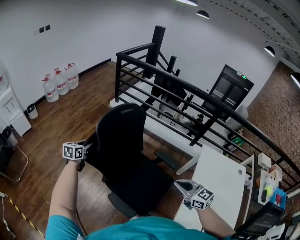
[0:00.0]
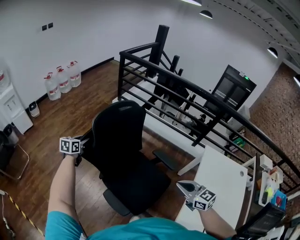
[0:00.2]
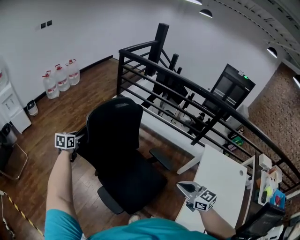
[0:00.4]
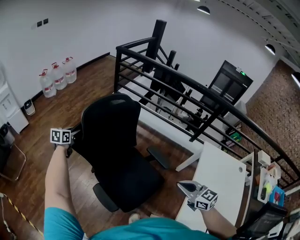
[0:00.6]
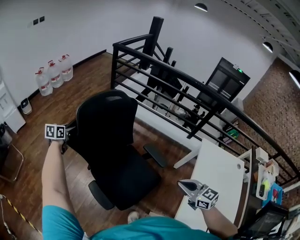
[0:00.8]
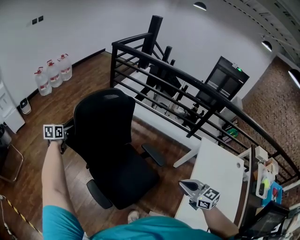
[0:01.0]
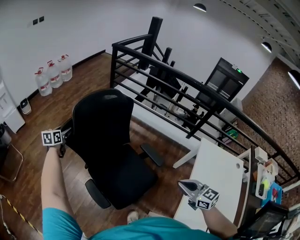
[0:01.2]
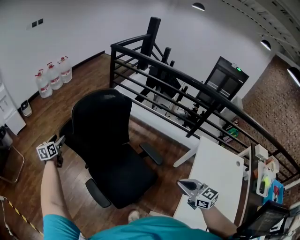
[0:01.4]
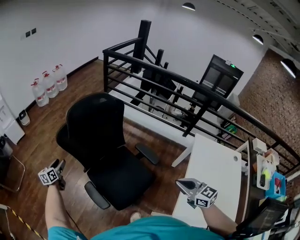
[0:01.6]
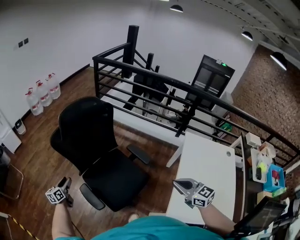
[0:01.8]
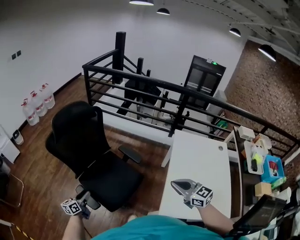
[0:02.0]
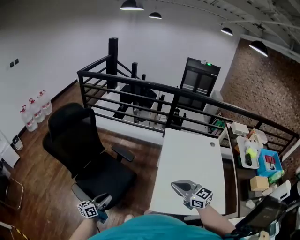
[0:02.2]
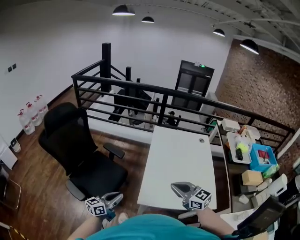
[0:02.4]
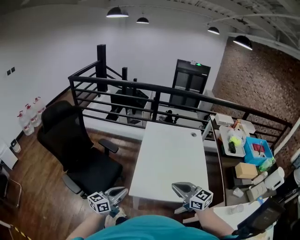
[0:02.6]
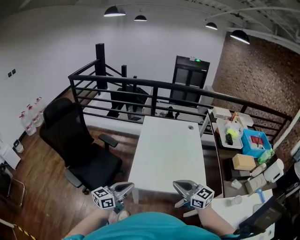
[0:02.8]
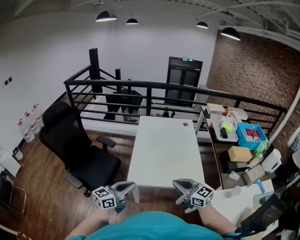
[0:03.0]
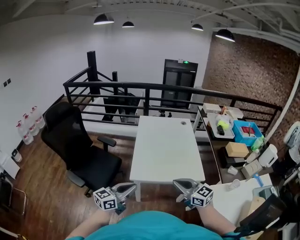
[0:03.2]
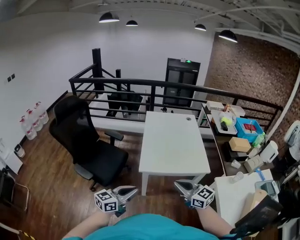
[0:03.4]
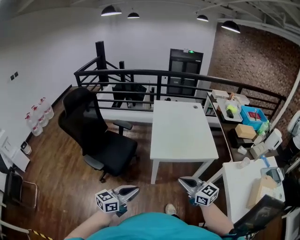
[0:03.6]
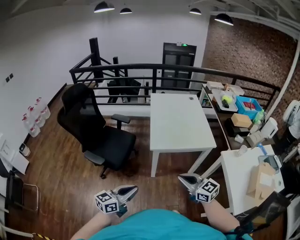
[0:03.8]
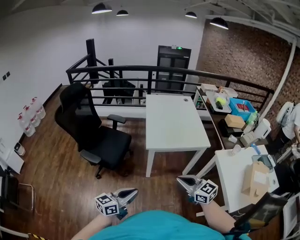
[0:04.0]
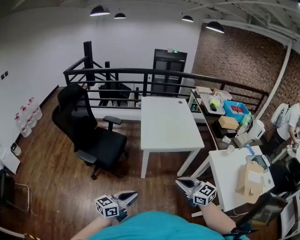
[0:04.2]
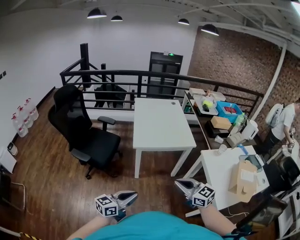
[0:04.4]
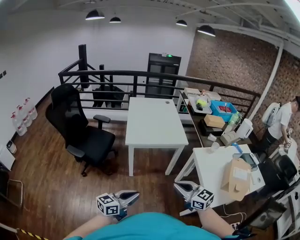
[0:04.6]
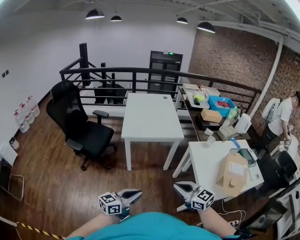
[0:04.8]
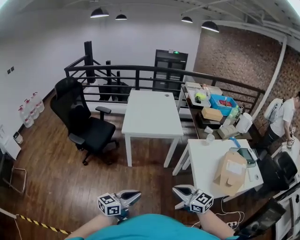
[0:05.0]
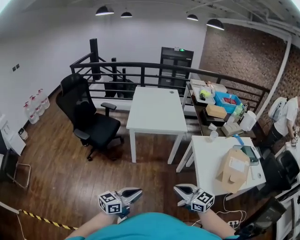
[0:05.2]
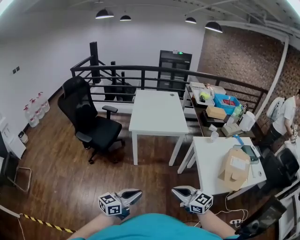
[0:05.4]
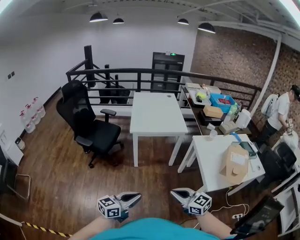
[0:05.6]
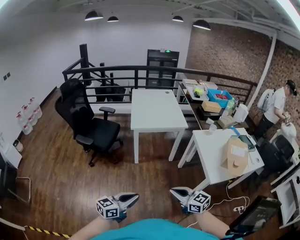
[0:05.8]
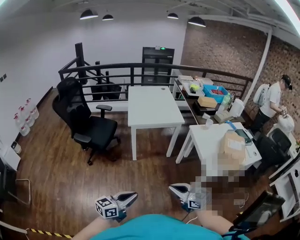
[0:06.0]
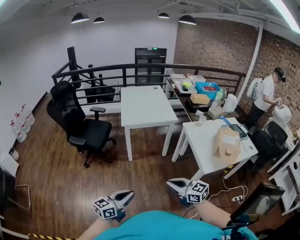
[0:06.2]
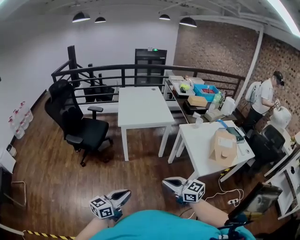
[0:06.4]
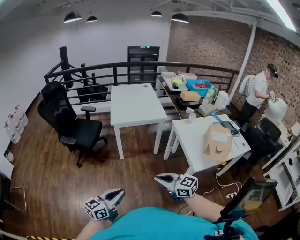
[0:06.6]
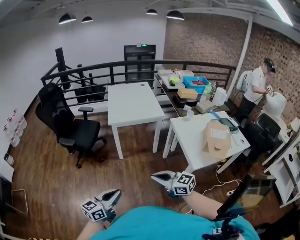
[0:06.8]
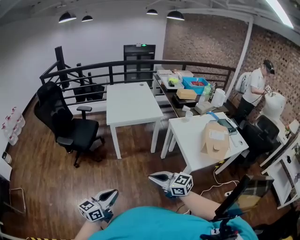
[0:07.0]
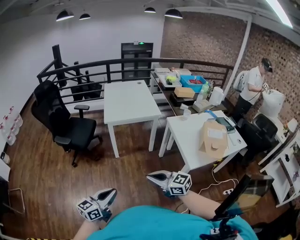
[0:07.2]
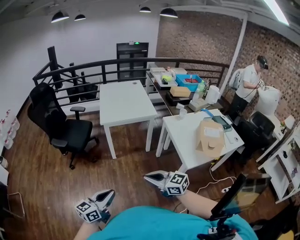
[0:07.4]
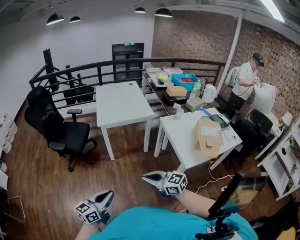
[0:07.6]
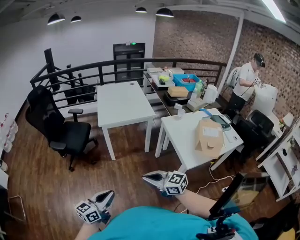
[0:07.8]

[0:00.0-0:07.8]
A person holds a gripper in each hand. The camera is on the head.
0:00.0 to 0:01.6: The left gripper shifts about 15 cm to the left, backward and downward, and turns by about 20 degrees, while the right gripper travels backward by approximately 5 cm.
0:01.6 to 0:03.2: The two grippers travel together, some 70 cm. The left gripper rotates roughly 70 degrees, and closes. The right gripper rotates some 20 degrees.
0:03.2 to 0:04.6: Both grippers move backward, approximately 35 cm.
0:04.6 to 0:06.2: Both grippers move backward, approximately 20 cm.
0:06.2 to 0:07.8: The grippers make only small movements.

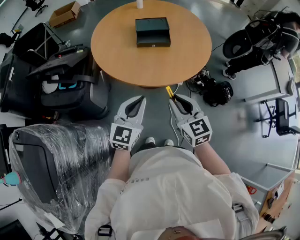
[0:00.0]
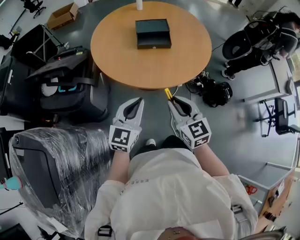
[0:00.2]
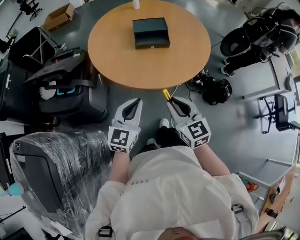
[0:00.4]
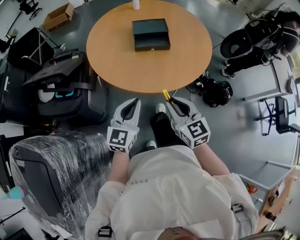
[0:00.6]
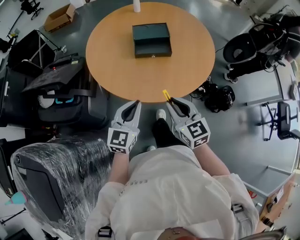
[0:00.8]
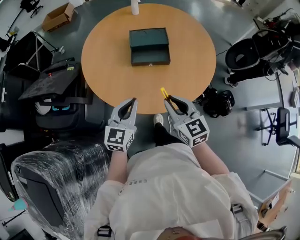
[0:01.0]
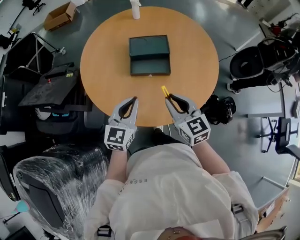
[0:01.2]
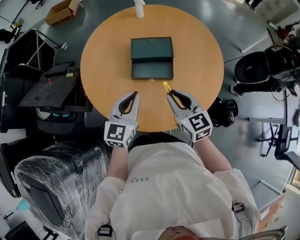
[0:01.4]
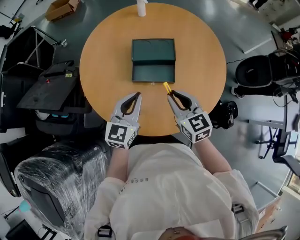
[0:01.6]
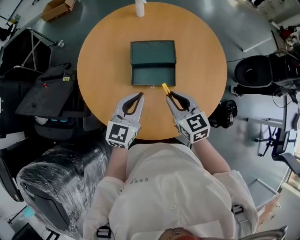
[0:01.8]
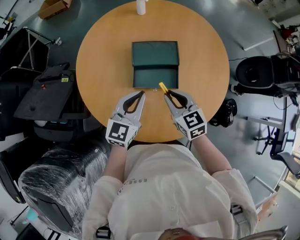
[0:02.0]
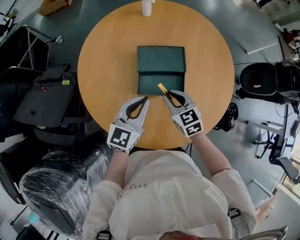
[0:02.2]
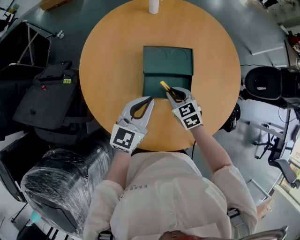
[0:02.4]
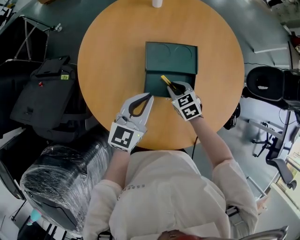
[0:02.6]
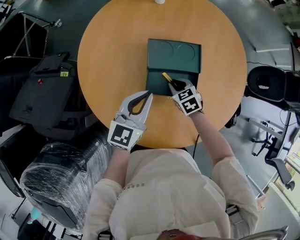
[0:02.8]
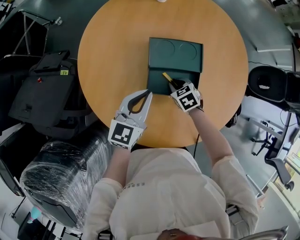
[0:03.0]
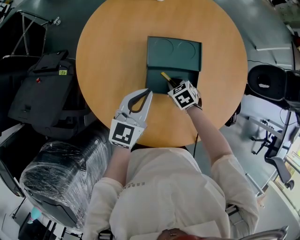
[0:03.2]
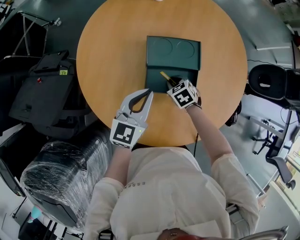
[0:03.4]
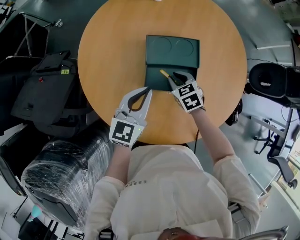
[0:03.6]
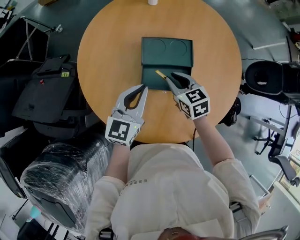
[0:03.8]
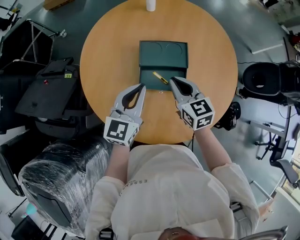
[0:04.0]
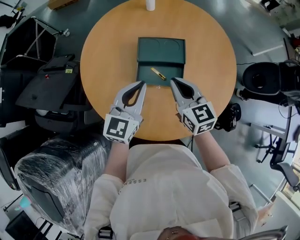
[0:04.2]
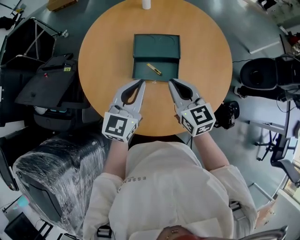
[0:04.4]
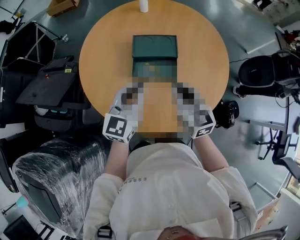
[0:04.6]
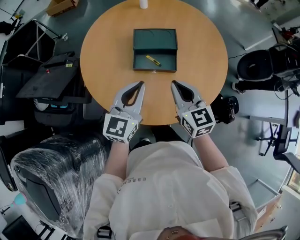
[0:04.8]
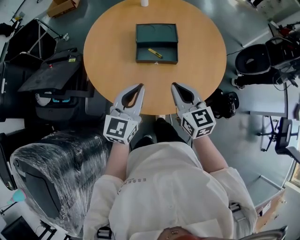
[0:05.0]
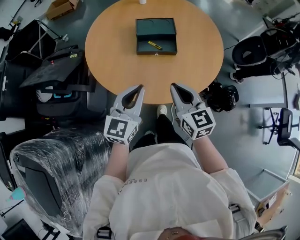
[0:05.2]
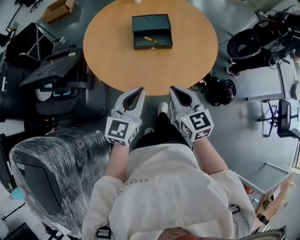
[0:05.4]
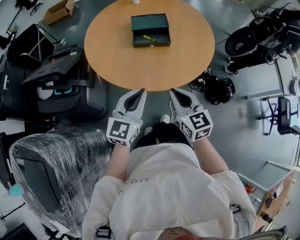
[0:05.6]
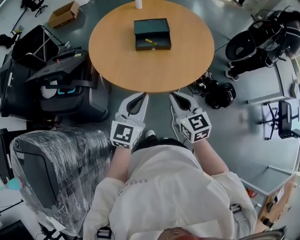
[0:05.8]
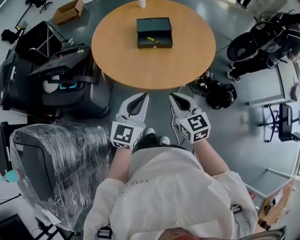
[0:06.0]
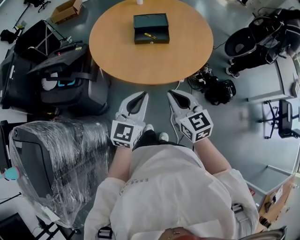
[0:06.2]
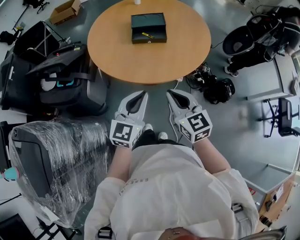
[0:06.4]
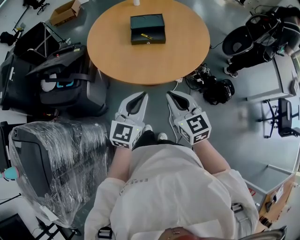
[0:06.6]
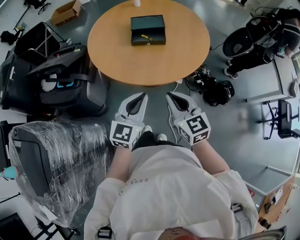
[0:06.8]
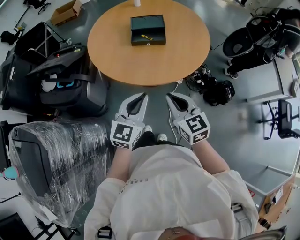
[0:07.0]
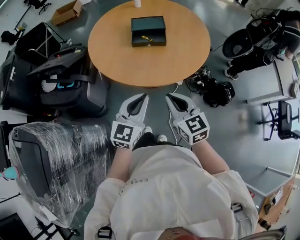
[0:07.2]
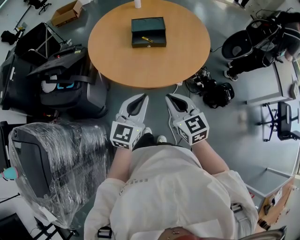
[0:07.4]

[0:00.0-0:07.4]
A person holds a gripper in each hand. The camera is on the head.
0:00.0 to 0:01.4: Both grippers move forward, roughly 30 cm.
0:01.4 to 0:03.0: The left gripper heads forward and downward, covering some 15 cm. The right gripper travels downward and forward by roughly 30 cm, and points its fingers roughly 40 degrees further downward.
0:03.0 to 0:04.4: The right gripper shifts roughly 25 cm upward, and tilts its fingers approximately 40 degrees upward. The left gripper is displaced upward, backward and to the right by approximately 10 cm.
0:04.4 to 0:06.0: The two grippers go about 35 cm backward.
0:06.0 to 0:07.4: The grippers stay close to where they were, moving slightly.

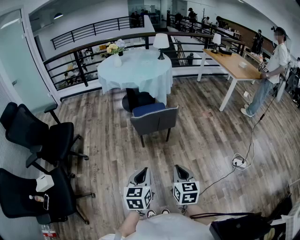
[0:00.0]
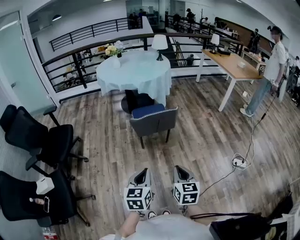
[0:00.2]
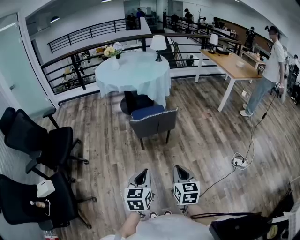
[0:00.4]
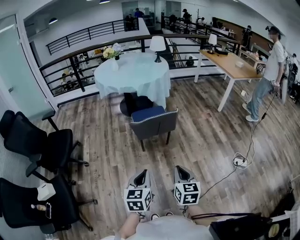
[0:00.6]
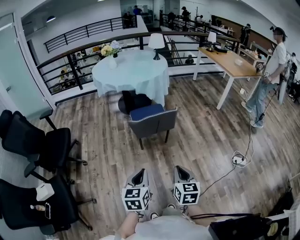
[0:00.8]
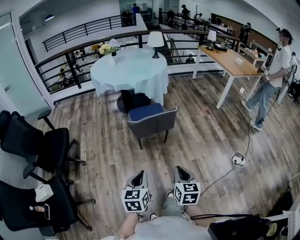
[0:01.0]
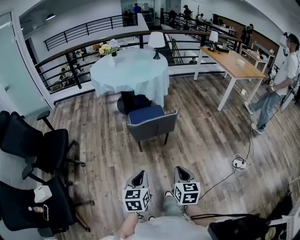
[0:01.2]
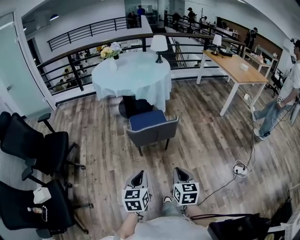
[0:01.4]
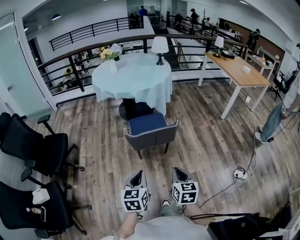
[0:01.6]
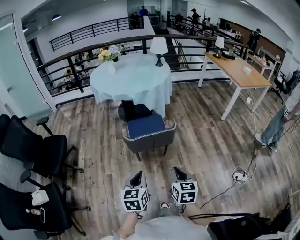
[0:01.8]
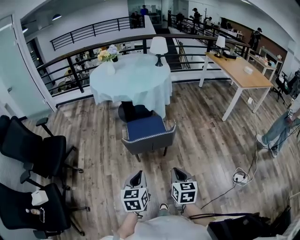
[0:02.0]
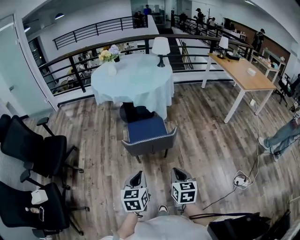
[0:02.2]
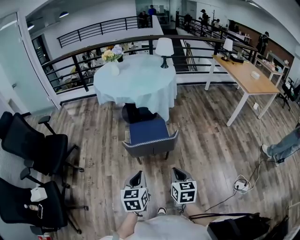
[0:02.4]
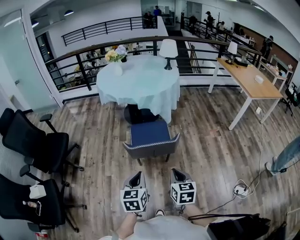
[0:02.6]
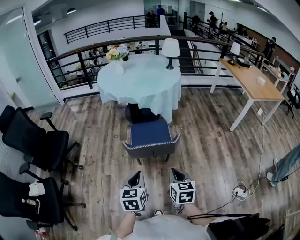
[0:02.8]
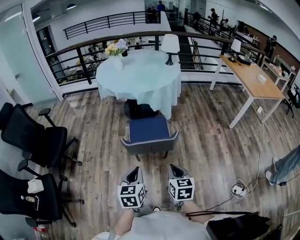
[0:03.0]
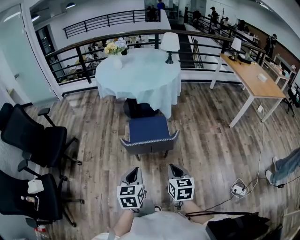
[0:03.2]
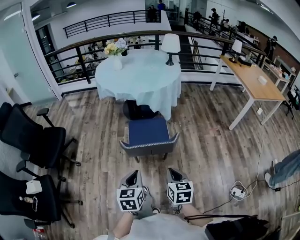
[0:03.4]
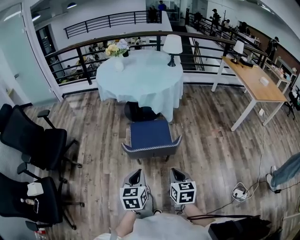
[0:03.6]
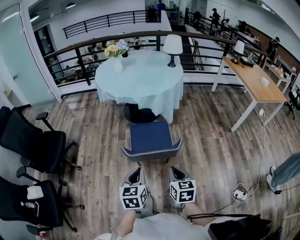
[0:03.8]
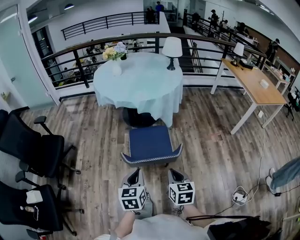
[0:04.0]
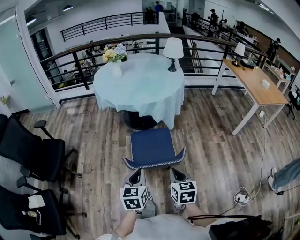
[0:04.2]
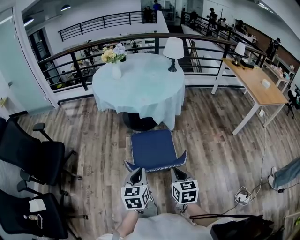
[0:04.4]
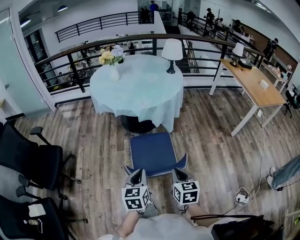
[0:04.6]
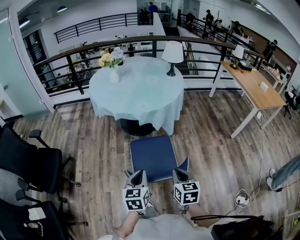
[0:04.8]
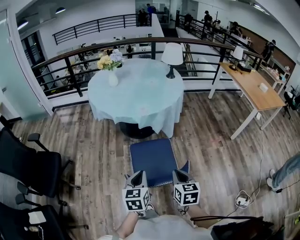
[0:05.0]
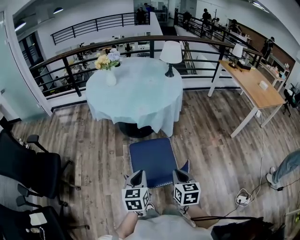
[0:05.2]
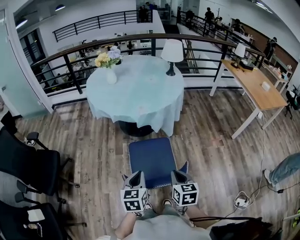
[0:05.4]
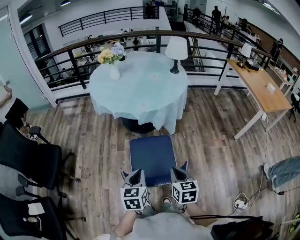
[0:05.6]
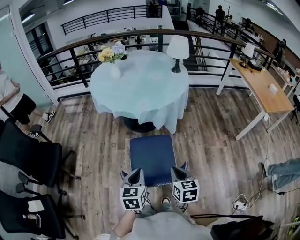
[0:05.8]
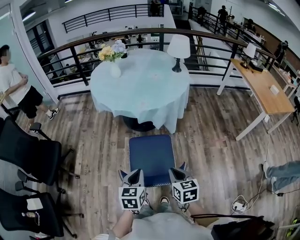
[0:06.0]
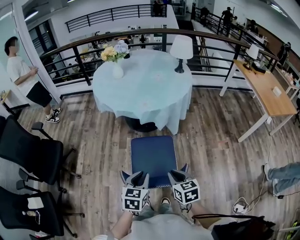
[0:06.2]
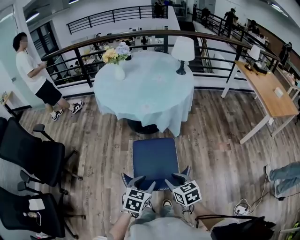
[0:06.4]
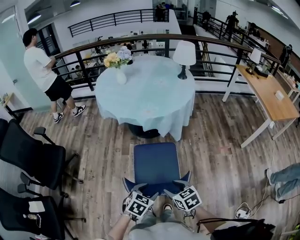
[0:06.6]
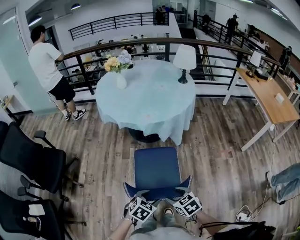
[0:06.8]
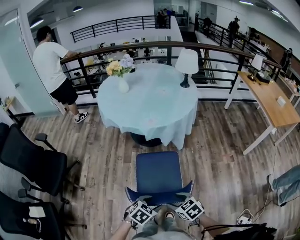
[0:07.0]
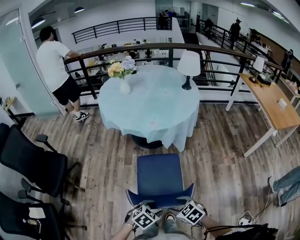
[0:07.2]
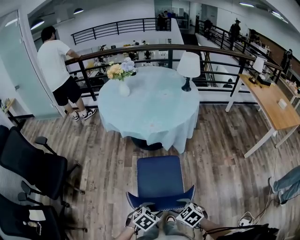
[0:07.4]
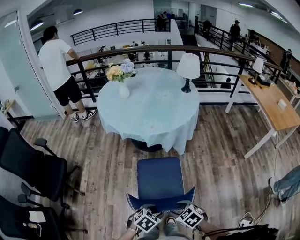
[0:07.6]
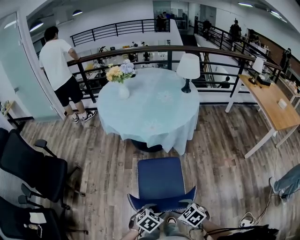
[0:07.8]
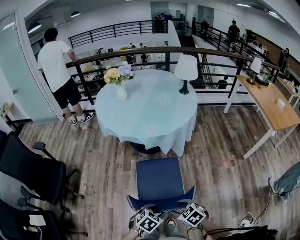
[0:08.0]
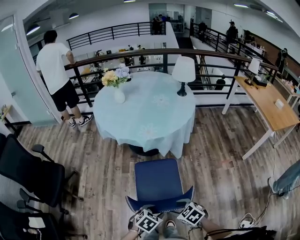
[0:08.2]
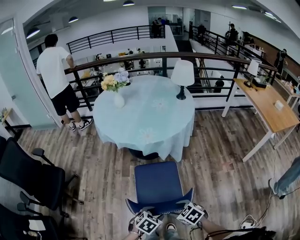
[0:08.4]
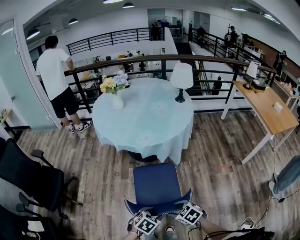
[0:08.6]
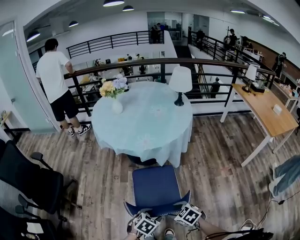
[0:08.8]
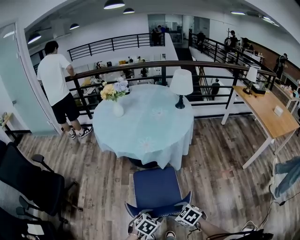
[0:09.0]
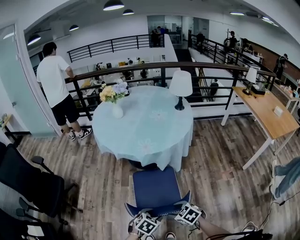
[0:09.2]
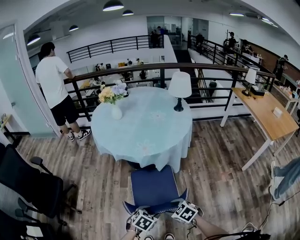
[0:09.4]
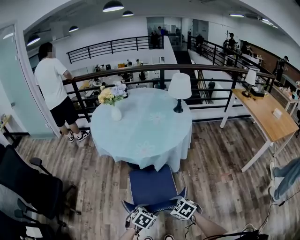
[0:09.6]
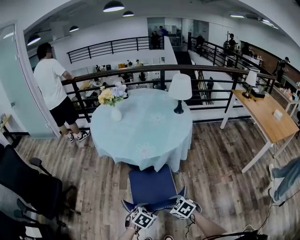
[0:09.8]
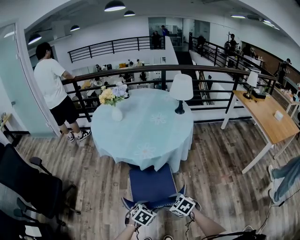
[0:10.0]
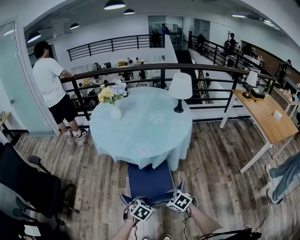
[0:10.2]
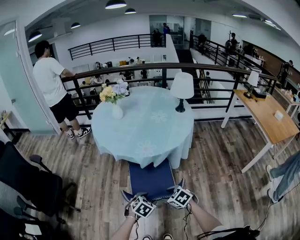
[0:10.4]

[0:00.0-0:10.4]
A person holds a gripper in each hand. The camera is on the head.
0:00.0 to 0:01.4: Both grippers travel together forward, approximately 10 cm.
0:01.4 to 0:03.0: The right gripper is displaced forward by about 15 cm; the left gripper moves forward and to the right, about 15 cm.
0:03.0 to 0:04.4: The two grippers go some 15 cm forward.
0:04.4 to 0:06.0: Both grippers move forward, roughly 10 cm.
0:06.0 to 0:07.4: The two grippers go some 10 cm downward and backward. The right gripper changes its angle by approximately 40 degrees, and opens, while the left gripper rotates some 50 degrees, and opens up.
0:07.4 to 0:09.0: Both grippers travel together forward, roughly 5 cm.
0:09.0 to 0:10.4: The grippers both shift forward by some 15 cm.
